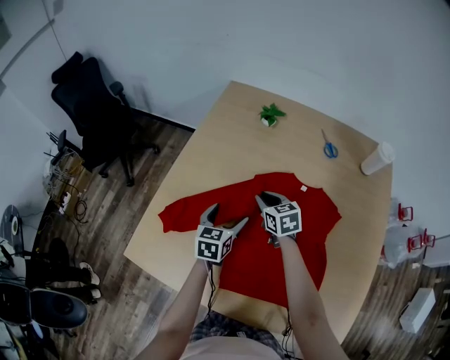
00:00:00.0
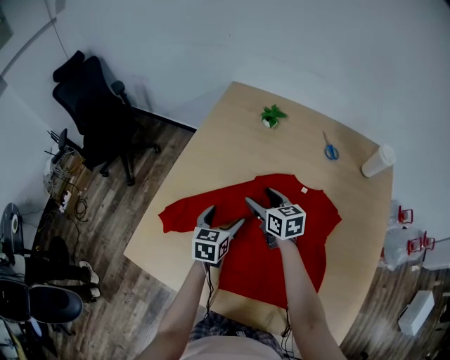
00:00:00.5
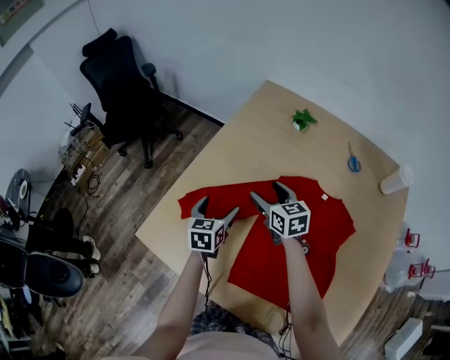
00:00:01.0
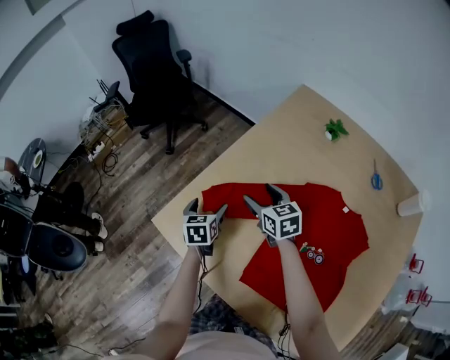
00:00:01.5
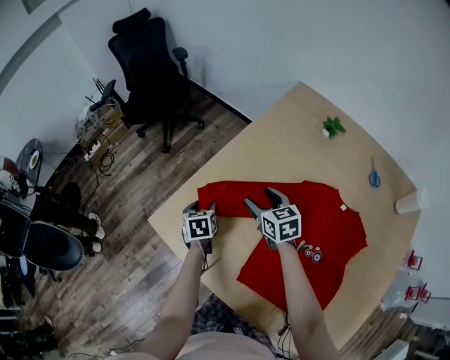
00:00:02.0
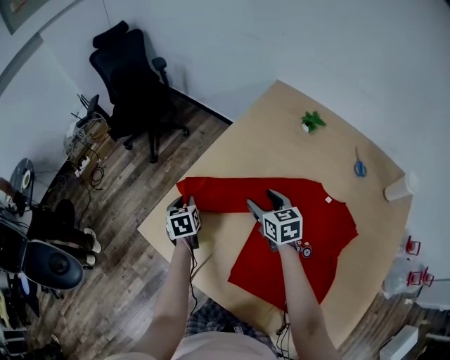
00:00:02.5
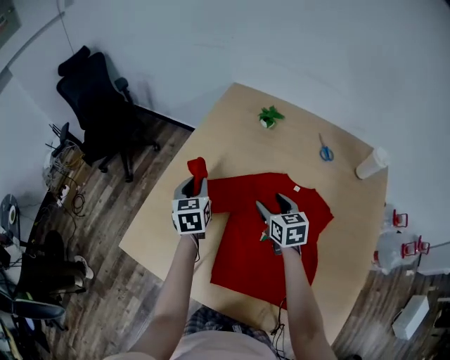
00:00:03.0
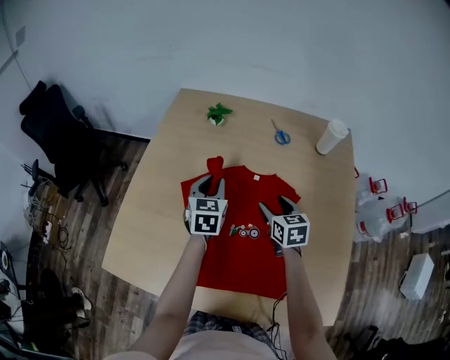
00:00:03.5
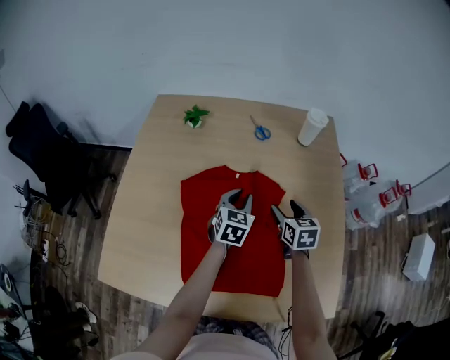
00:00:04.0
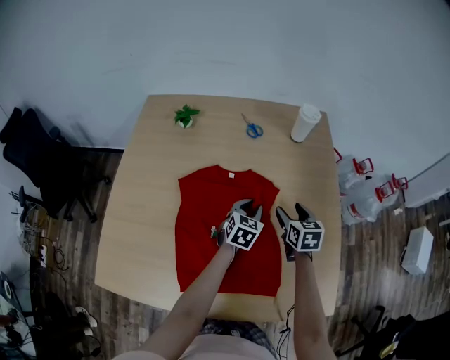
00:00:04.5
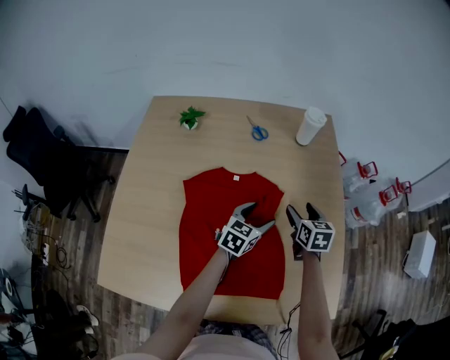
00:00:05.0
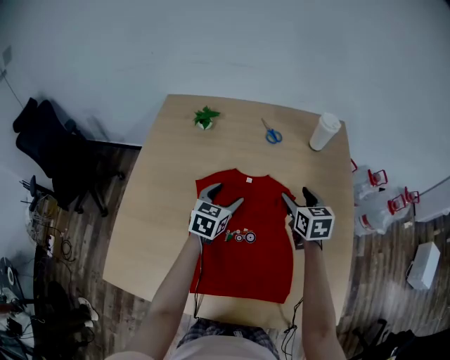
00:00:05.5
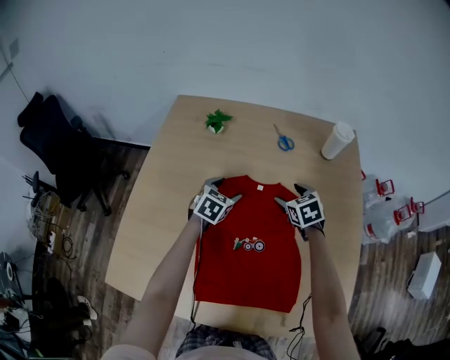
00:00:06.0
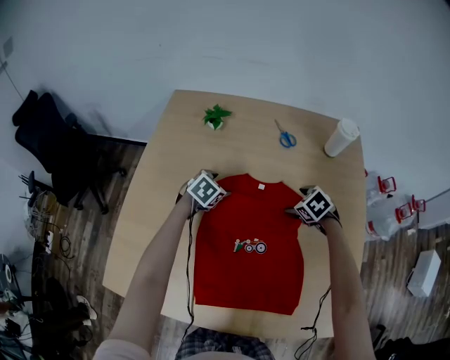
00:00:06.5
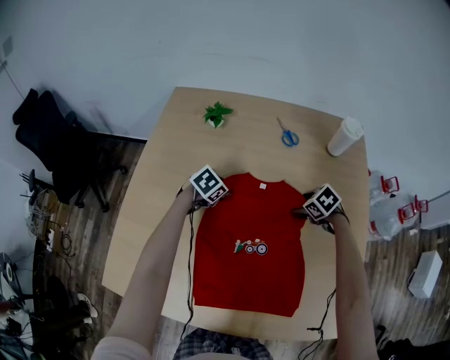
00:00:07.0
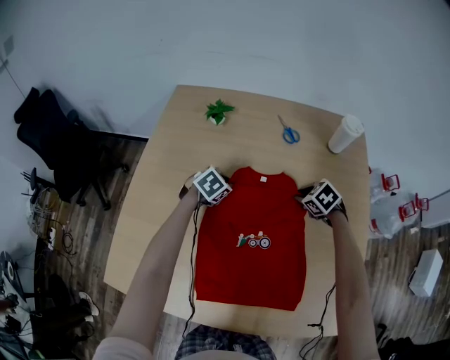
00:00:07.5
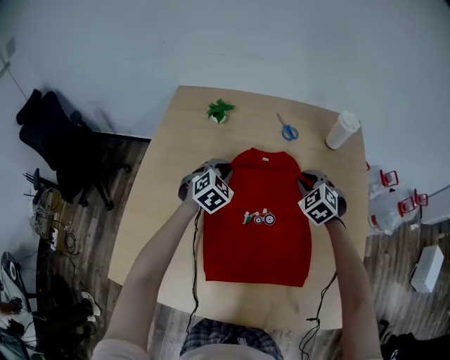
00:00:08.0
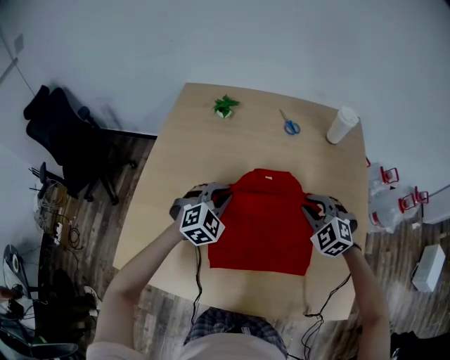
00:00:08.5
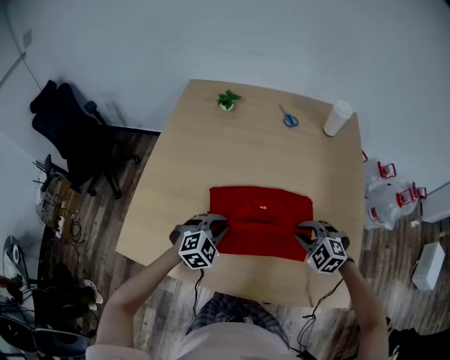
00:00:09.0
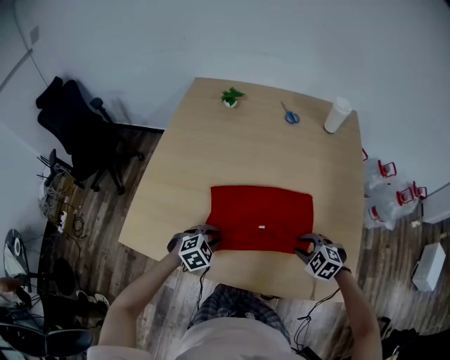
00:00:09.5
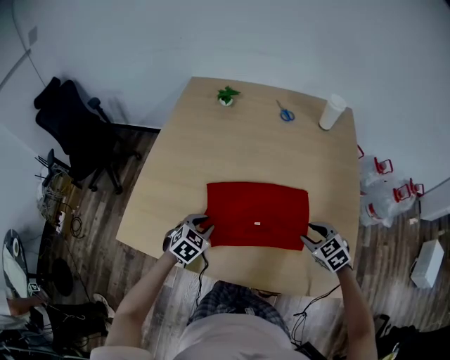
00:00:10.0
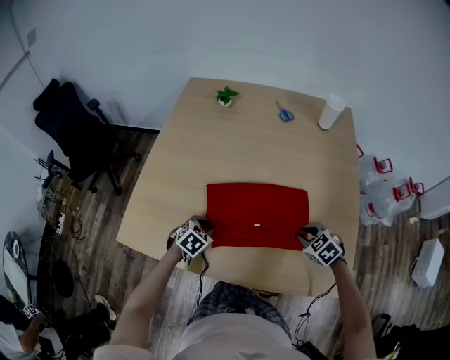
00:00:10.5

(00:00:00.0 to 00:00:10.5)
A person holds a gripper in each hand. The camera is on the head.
00:00:00.0 - 00:00:02.0: The right gripper moves about 20 cm, turns by about 20 degrees, and opens. The left gripper moves some 25 cm, swivels some 40 degrees, and closes up.
00:00:02.0 - 00:00:04.0: The pair of grippers is taken approximately 50 cm. The left gripper changes its angle by some 70 degrees. The right gripper rotates about 50 degrees.
00:00:04.0 - 00:00:06.5: The right gripper heads forward and downward, covering approximately 10 cm, moves approximately 5 cm to the left and comes back, and rotates some 50 degrees. Meanwhile the left gripper moves to the left, downward and forward, roughly 20 cm, changes its angle by roughly 30 degrees, and opens up.
00:00:06.5 - 00:00:08.5: The left gripper shifts by roughly 20 cm, turns by about 40 degrees, and closes its fingers. Meanwhile the right gripper is displaced upward by about 10 cm, turns by approximately 40 degrees, and closes.
00:00:08.5 - 00:00:10.5: The grippers both shift backward and downward by approximately 20 cm. The right gripper changes its angle by approximately 30 degrees. The left gripper changes its angle by roughly 40 degrees.

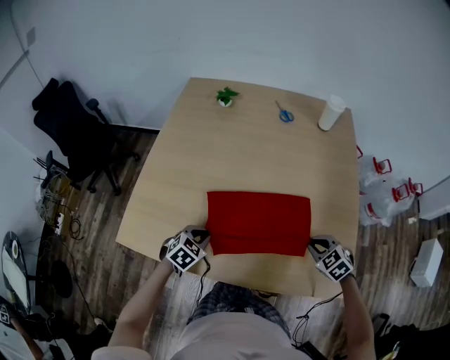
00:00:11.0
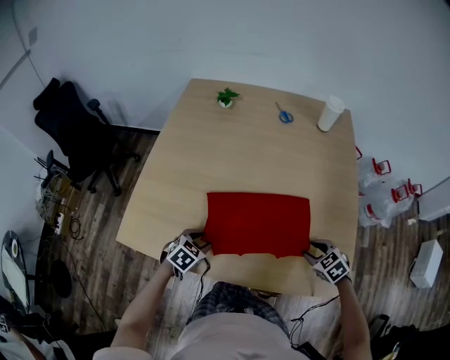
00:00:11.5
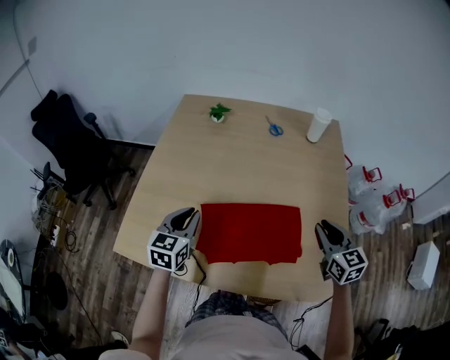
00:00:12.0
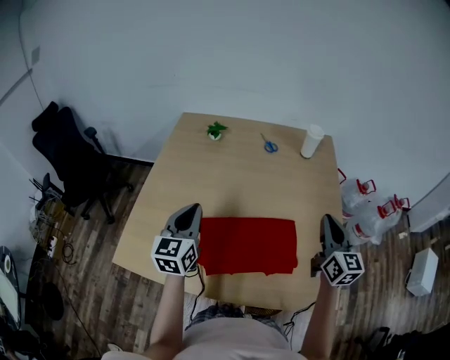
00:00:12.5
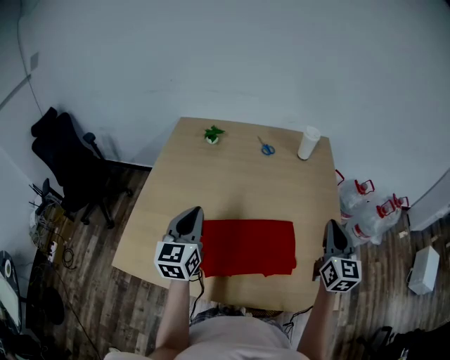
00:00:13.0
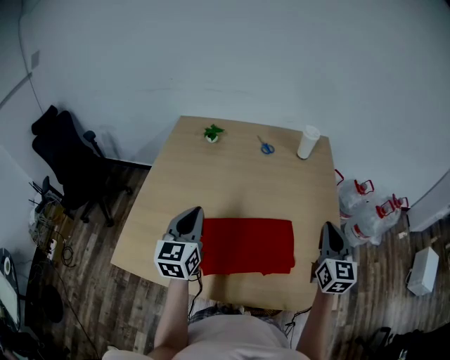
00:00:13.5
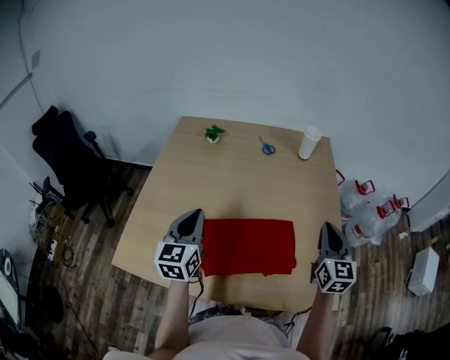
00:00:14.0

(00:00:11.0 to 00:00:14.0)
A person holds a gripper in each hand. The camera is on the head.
00:00:11.0 - 00:00:12.5: The grippers both shift upward by roughly 25 cm. The left gripper tips its fingers upward by some 50 degrees, while the right gripper tips its fingers upward by about 50 degrees.
00:00:12.5 - 00:00:14.0: The grippers move only a little.

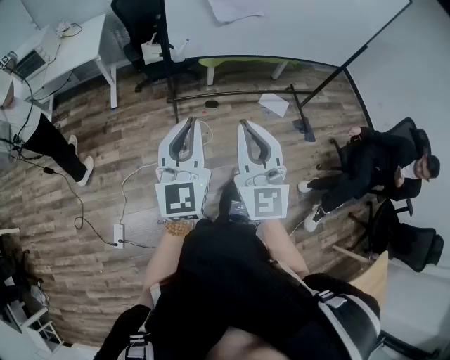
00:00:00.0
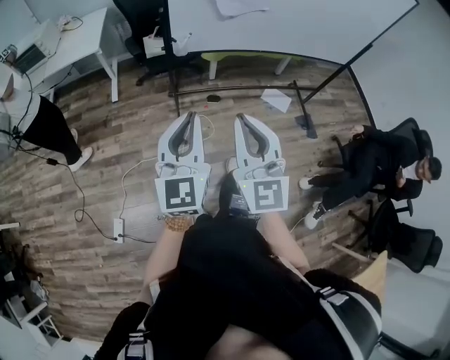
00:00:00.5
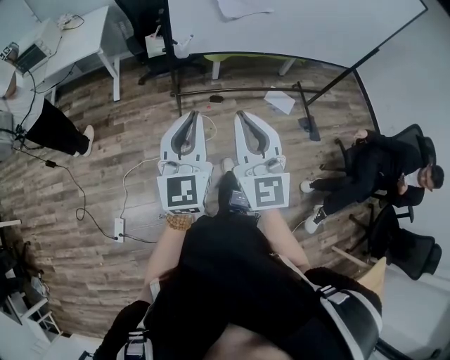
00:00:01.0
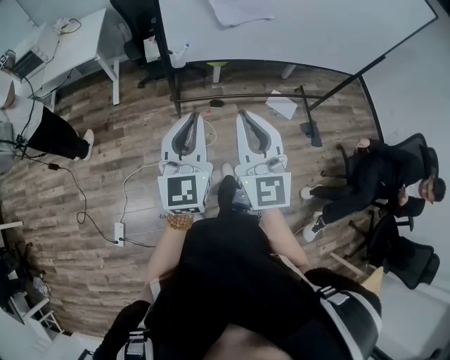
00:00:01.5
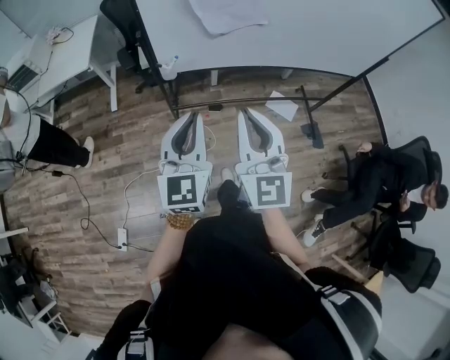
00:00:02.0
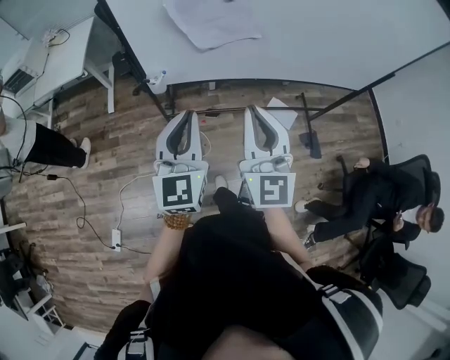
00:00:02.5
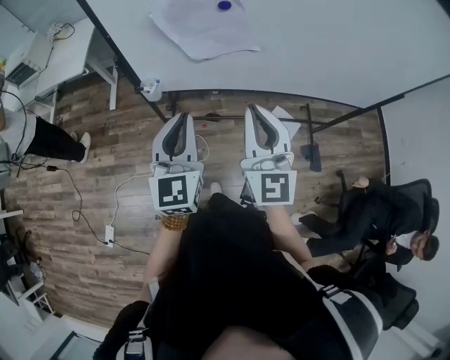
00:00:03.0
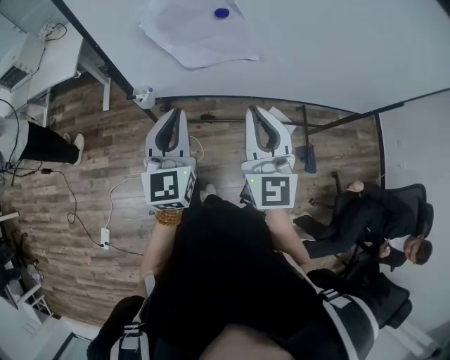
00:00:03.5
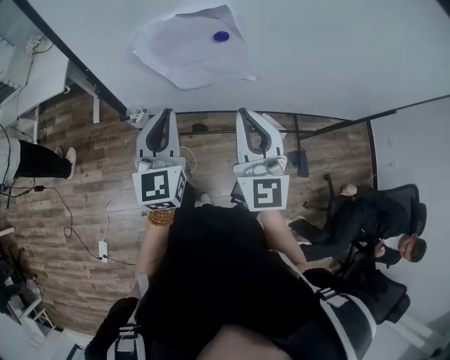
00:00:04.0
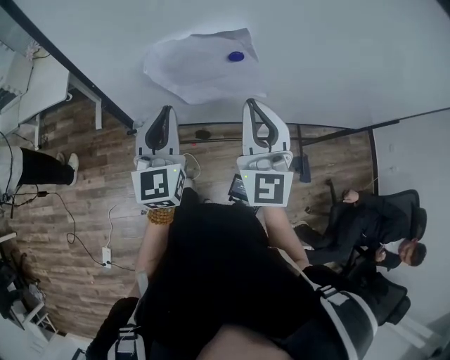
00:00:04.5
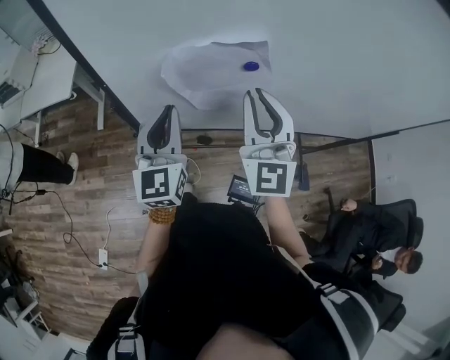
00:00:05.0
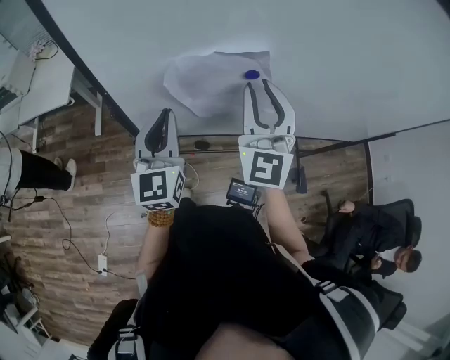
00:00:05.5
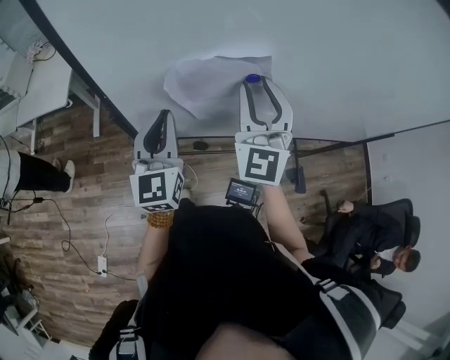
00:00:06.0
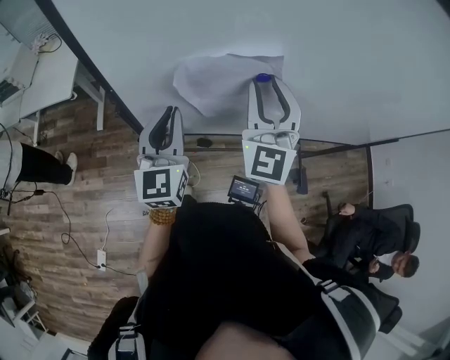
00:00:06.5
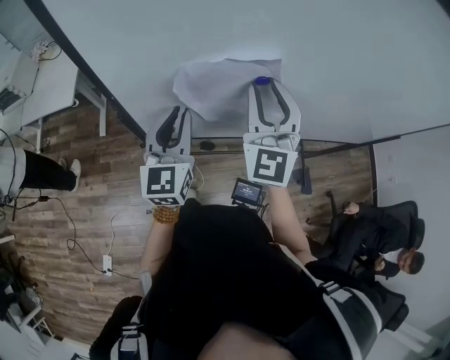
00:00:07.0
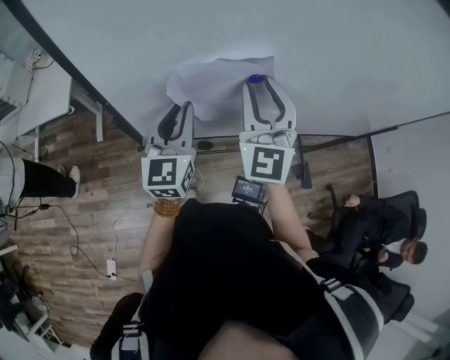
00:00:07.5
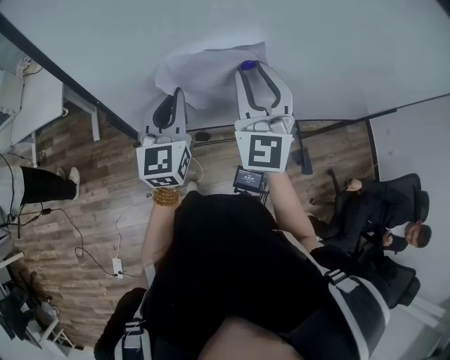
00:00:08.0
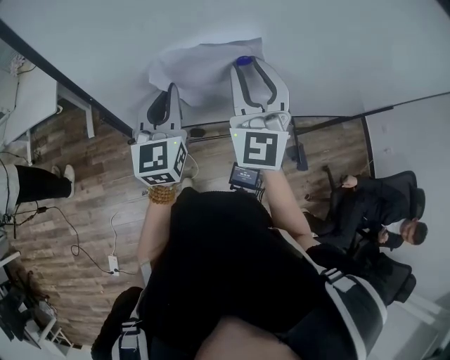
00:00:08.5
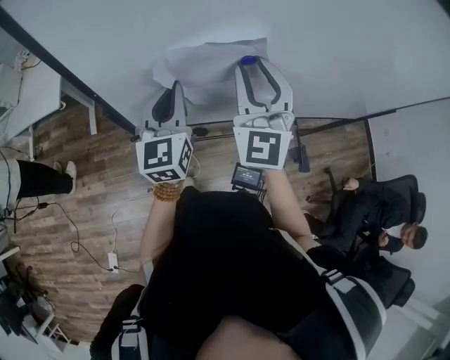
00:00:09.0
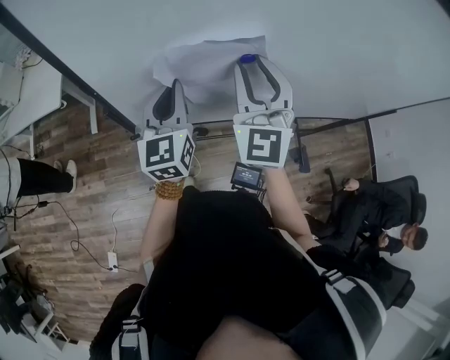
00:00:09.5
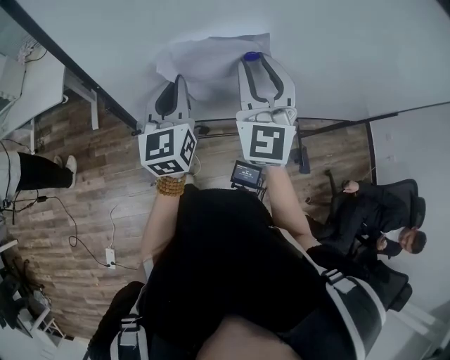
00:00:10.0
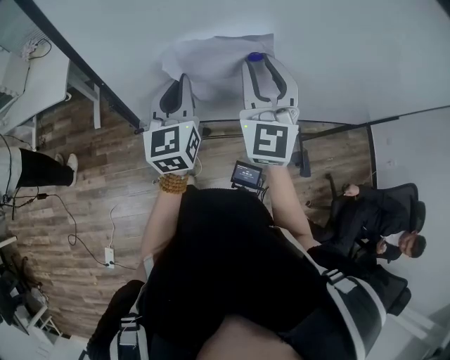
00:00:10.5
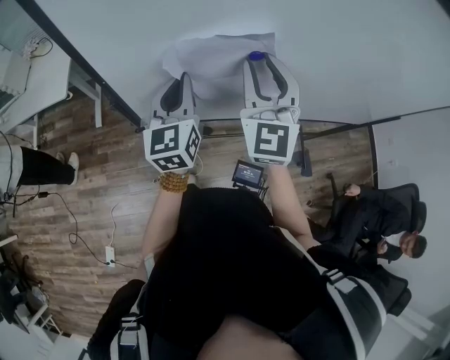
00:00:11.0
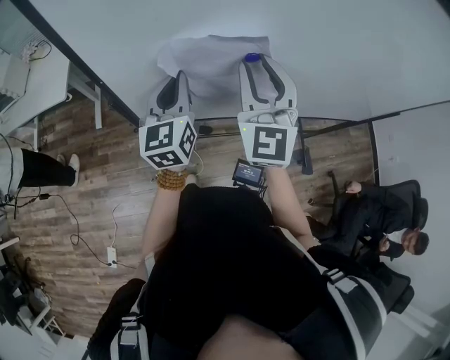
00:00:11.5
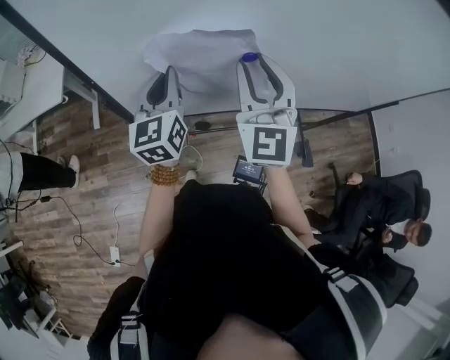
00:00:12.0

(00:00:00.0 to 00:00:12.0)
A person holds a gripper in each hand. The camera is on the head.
00:00:00.0 - 00:00:02.0: The two grippers go roughly 20 cm forward.
00:00:02.0 - 00:00:04.0: The left gripper moves forward, some 25 cm, while the right gripper shifts roughly 25 cm forward and to the right.
00:00:04.0 - 00:00:06.0: The right gripper moves forward, roughly 15 cm, rotates approximately 20 degrees, and opens. The left gripper heads forward and to the left, covering some 10 cm.
00:00:06.0 - 00:00:08.0: The left gripper moves about 5 cm.
00:00:08.0 - 00:00:12.0: The grippers move only a little.

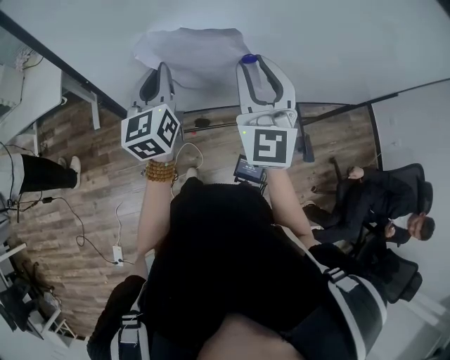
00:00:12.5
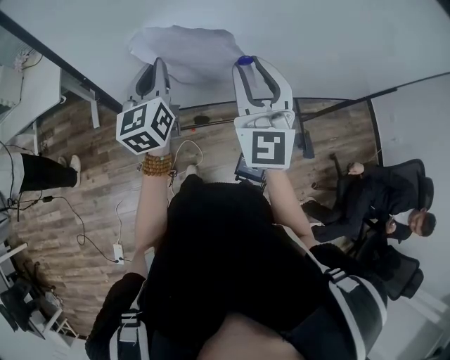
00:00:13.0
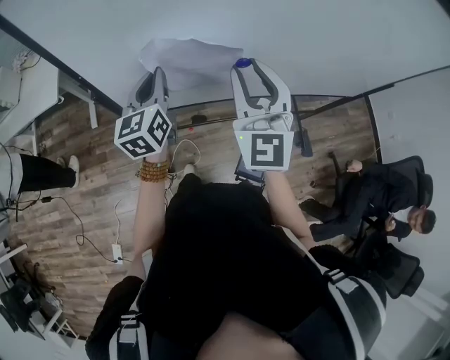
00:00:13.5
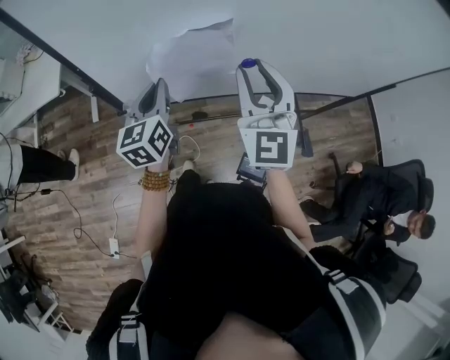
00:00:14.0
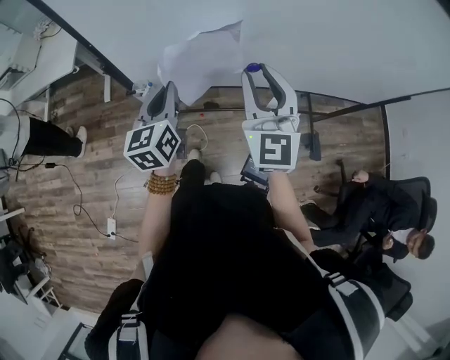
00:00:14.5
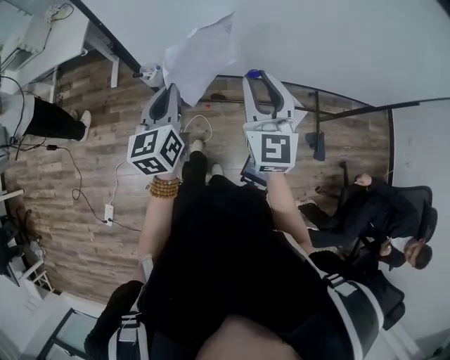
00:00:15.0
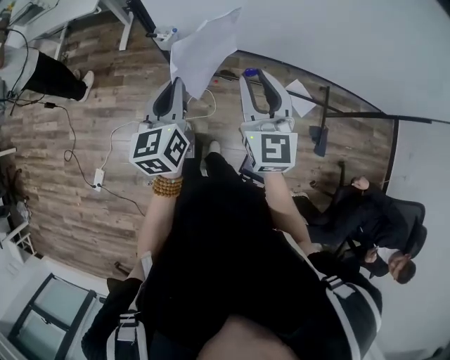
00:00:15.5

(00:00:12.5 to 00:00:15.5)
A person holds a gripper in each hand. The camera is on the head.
00:00:12.5 - 00:00:14.0: Both grippers travel together backward, approximately 5 cm.
00:00:14.0 - 00:00:15.5: The left gripper heads backward, covering approximately 15 cm, while the right gripper heads downward, backward and to the left, covering roughly 15 cm, and changes its angle by about 30 degrees.
